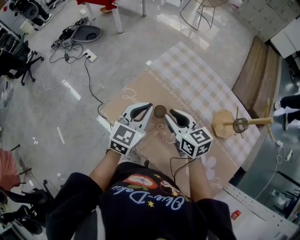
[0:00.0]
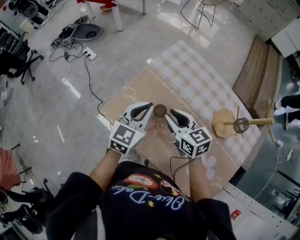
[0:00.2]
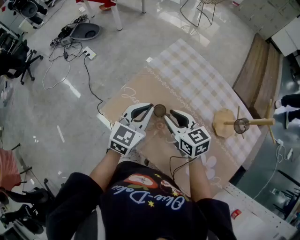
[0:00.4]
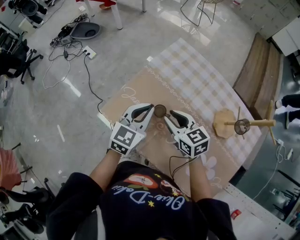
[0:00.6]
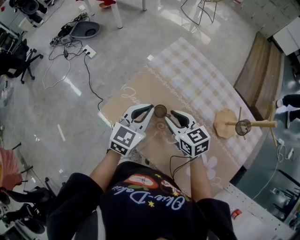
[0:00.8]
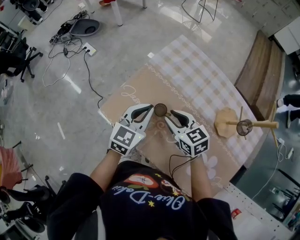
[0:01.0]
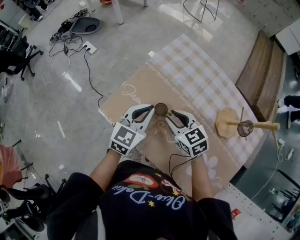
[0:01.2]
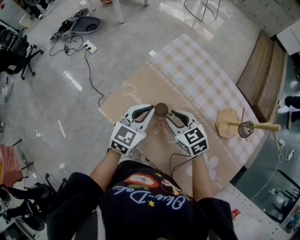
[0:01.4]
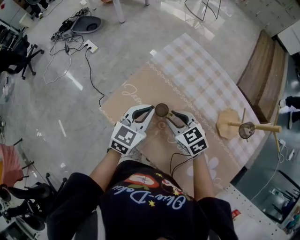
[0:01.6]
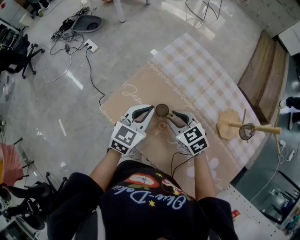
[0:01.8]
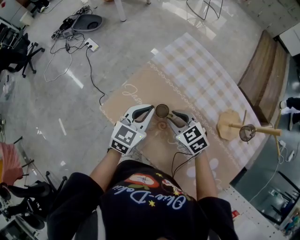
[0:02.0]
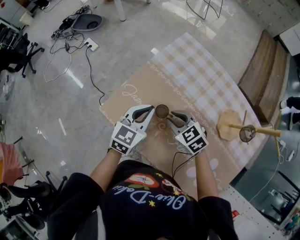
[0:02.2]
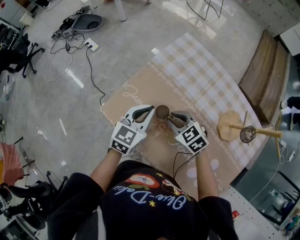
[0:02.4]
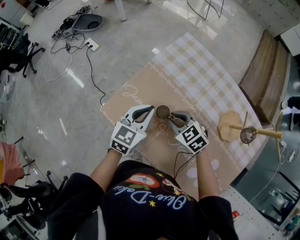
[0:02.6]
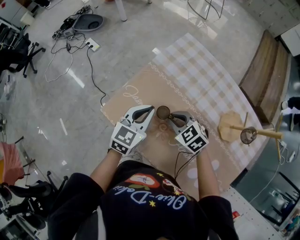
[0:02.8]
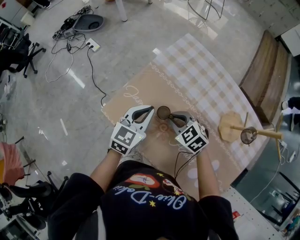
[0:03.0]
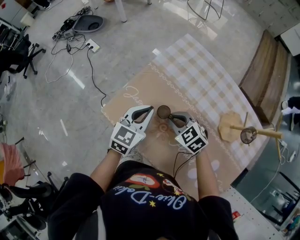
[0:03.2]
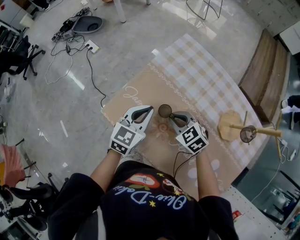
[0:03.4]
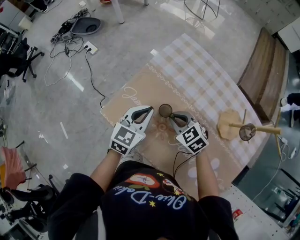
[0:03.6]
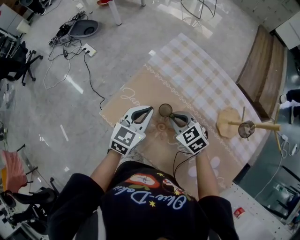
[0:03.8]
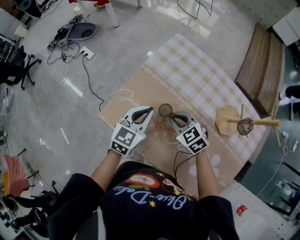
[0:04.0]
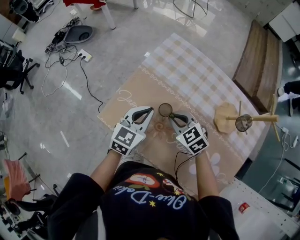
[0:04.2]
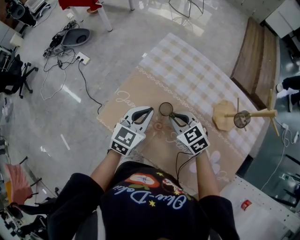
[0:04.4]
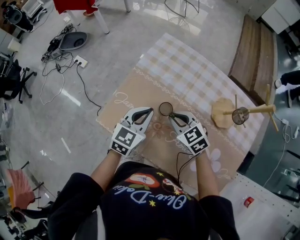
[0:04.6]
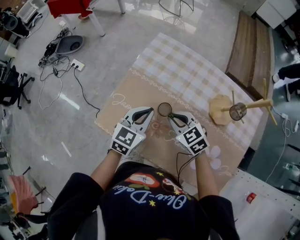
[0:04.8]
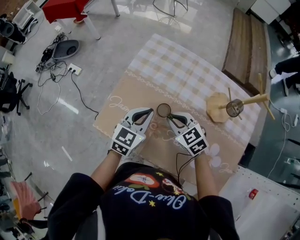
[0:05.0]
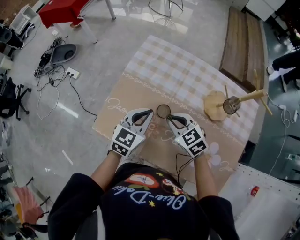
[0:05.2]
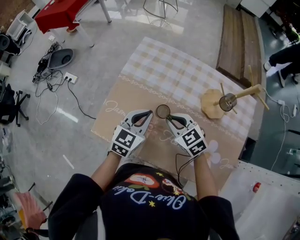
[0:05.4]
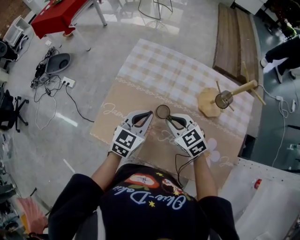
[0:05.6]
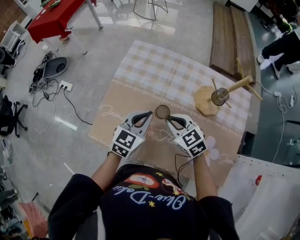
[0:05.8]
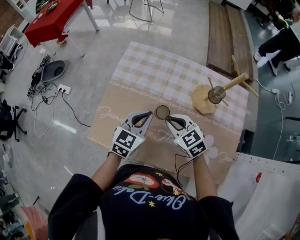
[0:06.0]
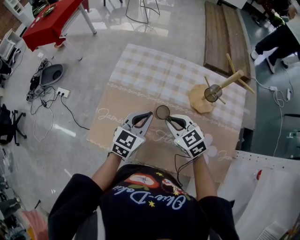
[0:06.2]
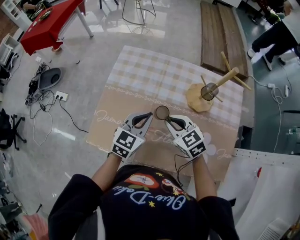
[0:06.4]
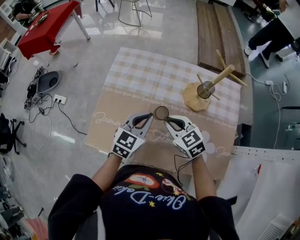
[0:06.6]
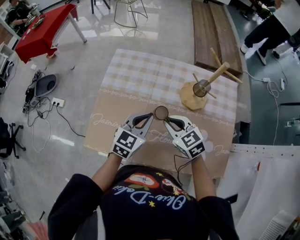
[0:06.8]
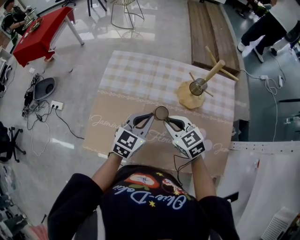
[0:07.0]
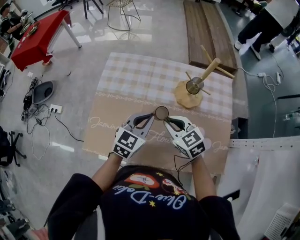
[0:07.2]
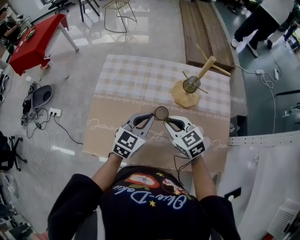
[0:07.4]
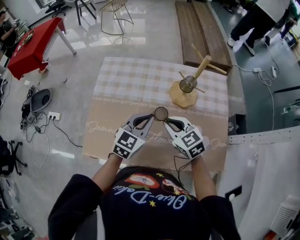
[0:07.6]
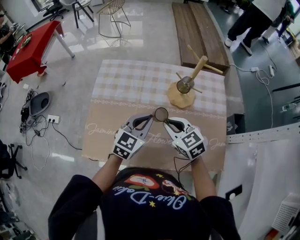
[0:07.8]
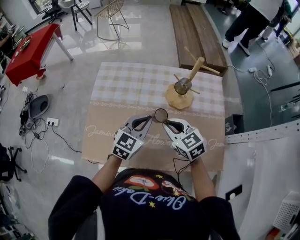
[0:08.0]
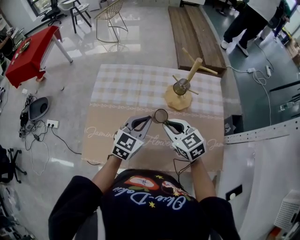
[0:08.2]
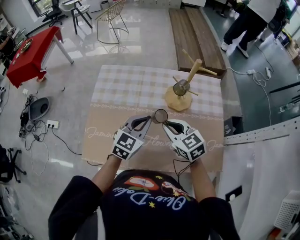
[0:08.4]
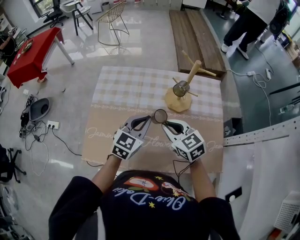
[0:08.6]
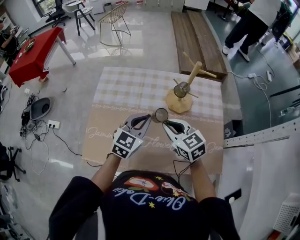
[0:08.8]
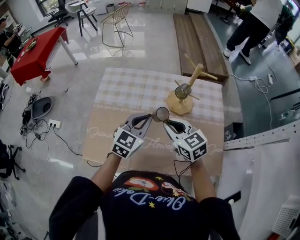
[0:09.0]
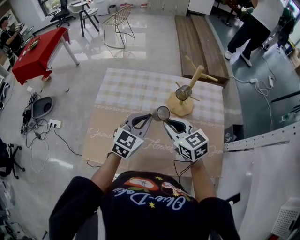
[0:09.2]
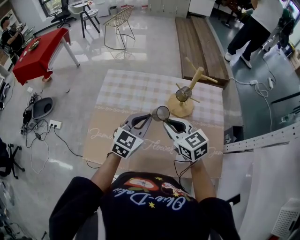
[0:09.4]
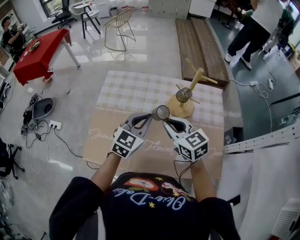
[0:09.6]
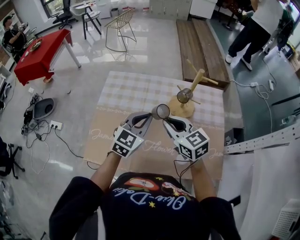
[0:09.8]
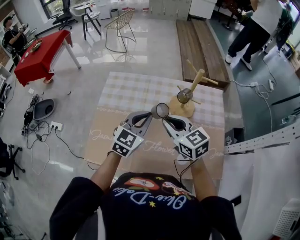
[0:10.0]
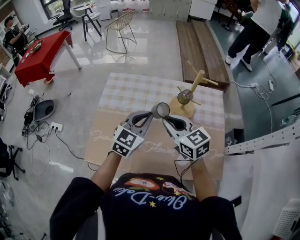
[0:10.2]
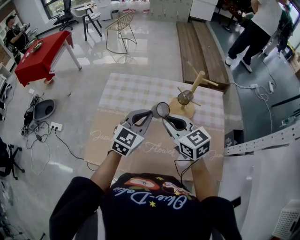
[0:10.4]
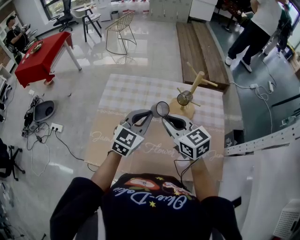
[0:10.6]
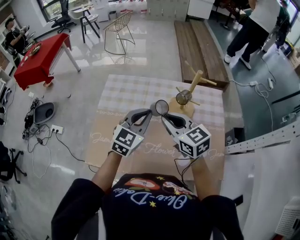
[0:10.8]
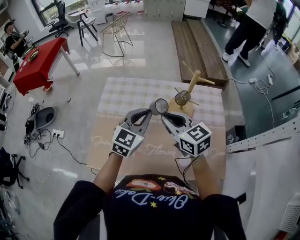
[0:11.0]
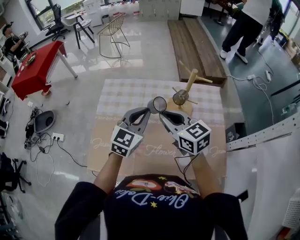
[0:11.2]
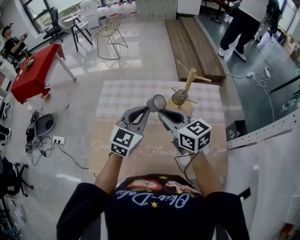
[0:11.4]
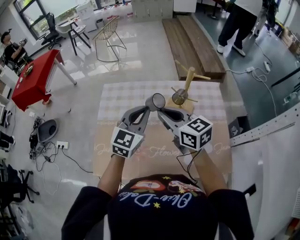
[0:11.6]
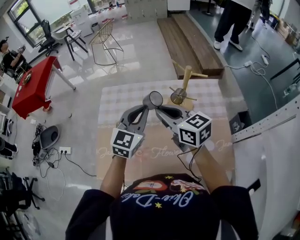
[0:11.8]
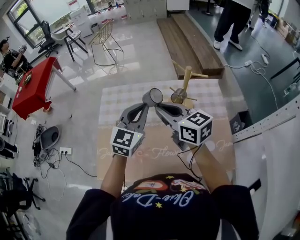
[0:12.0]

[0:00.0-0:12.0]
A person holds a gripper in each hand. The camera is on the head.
0:00.0 to 0:01.6: The two grippers go roughly 5 cm downward. The right gripper turns by approximately 30 degrees.
0:01.6 to 0:04.4: The grippers move only a little.
0:04.4 to 0:06.0: Both grippers travel together to the right, some 5 cm.
0:06.0 to 0:07.6: Both grippers move to the right, roughly 5 cm.
0:07.6 to 0:09.0: The right gripper goes approximately 5 cm upward.
0:09.0 to 0:10.4: The right gripper moves upward, roughly 5 cm.
0:10.4 to 0:12.0: The left gripper changes place by some 5 cm, while the right gripper moves roughly 5 cm.

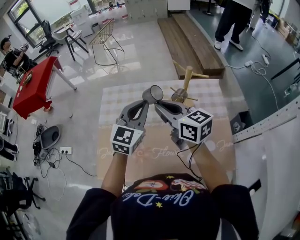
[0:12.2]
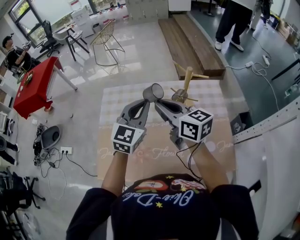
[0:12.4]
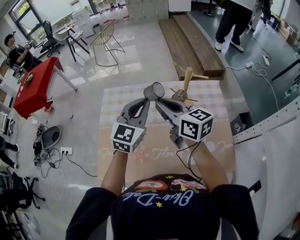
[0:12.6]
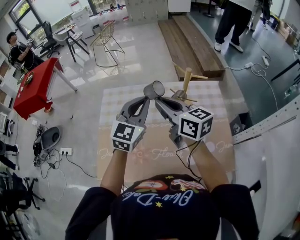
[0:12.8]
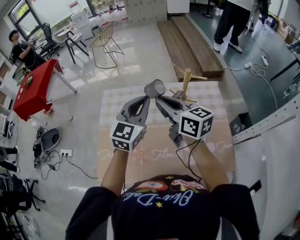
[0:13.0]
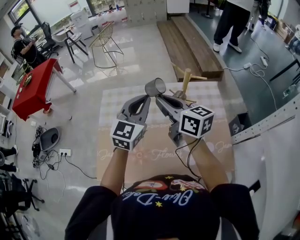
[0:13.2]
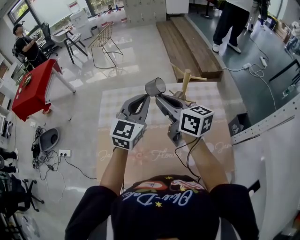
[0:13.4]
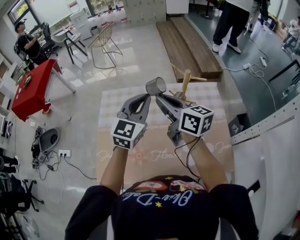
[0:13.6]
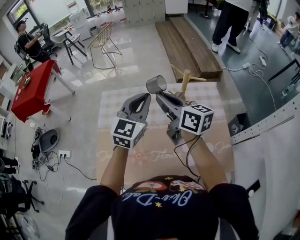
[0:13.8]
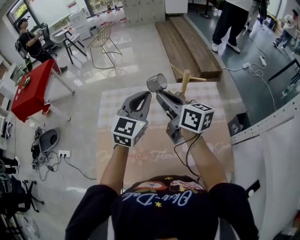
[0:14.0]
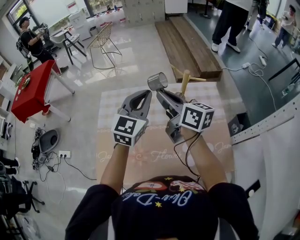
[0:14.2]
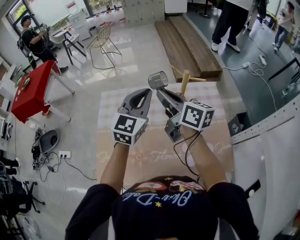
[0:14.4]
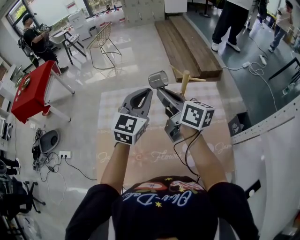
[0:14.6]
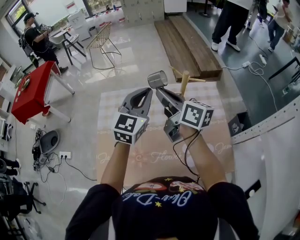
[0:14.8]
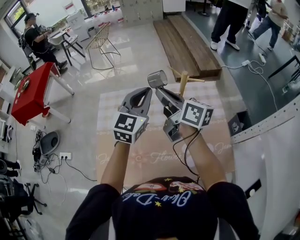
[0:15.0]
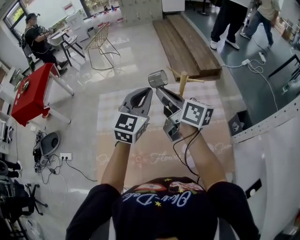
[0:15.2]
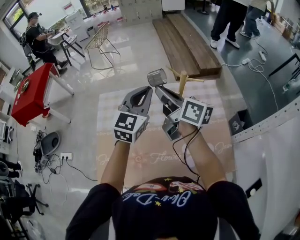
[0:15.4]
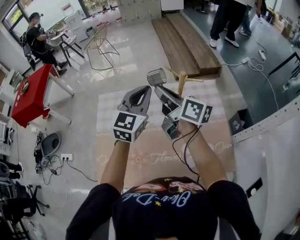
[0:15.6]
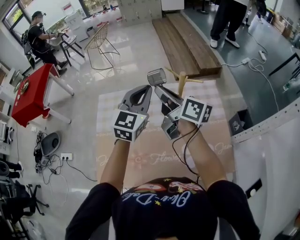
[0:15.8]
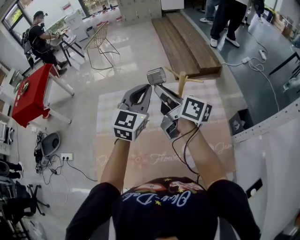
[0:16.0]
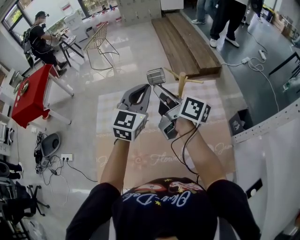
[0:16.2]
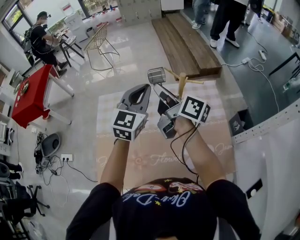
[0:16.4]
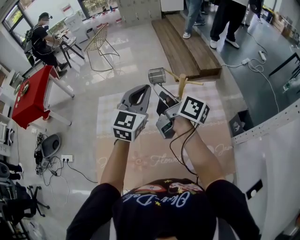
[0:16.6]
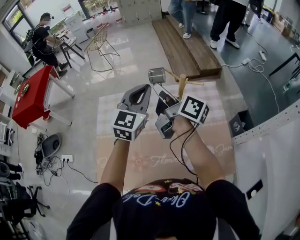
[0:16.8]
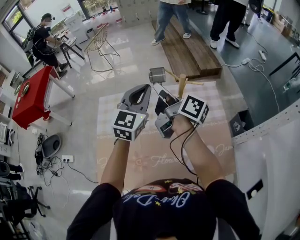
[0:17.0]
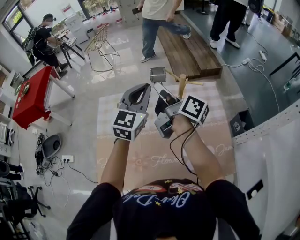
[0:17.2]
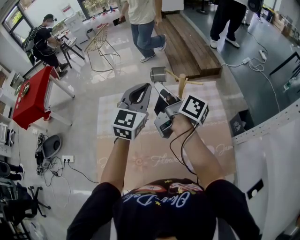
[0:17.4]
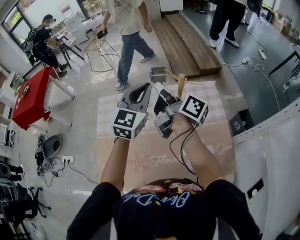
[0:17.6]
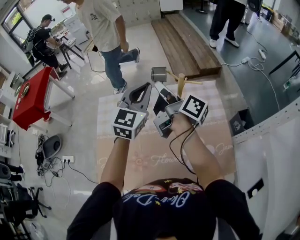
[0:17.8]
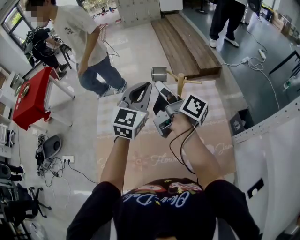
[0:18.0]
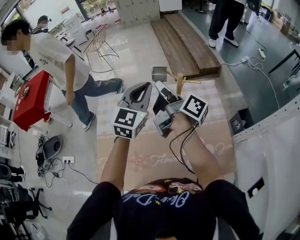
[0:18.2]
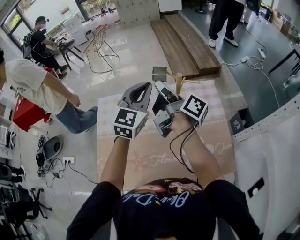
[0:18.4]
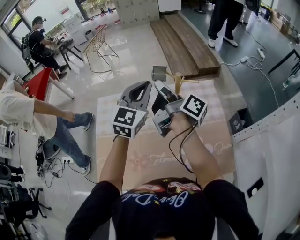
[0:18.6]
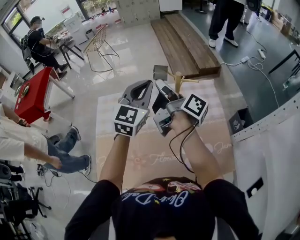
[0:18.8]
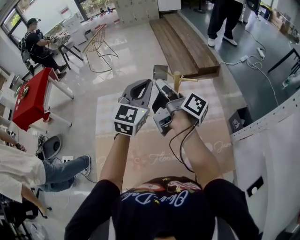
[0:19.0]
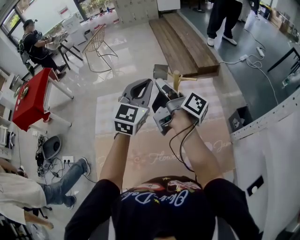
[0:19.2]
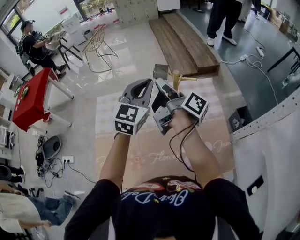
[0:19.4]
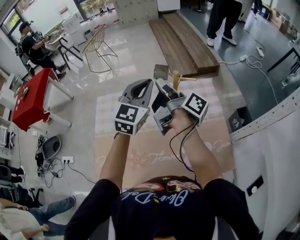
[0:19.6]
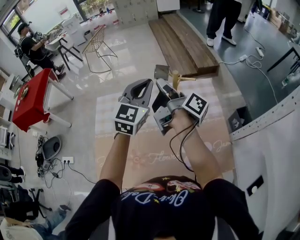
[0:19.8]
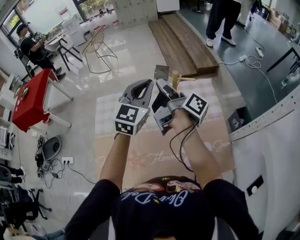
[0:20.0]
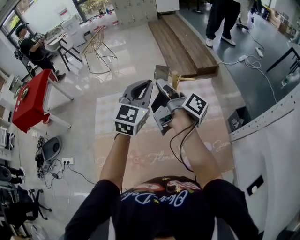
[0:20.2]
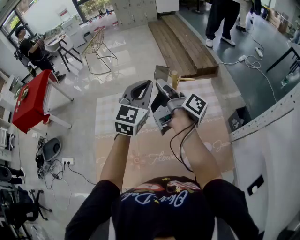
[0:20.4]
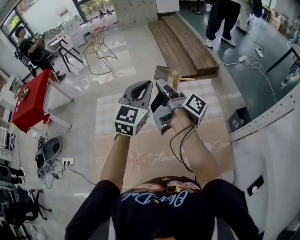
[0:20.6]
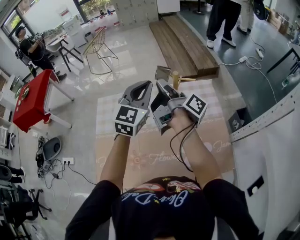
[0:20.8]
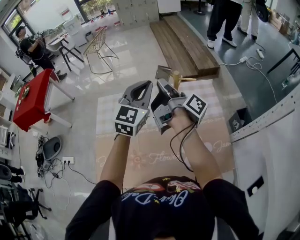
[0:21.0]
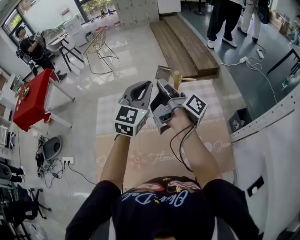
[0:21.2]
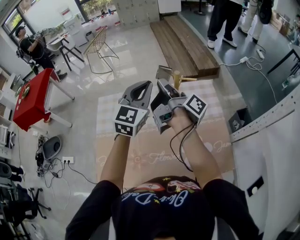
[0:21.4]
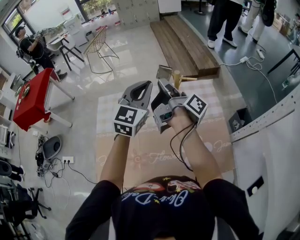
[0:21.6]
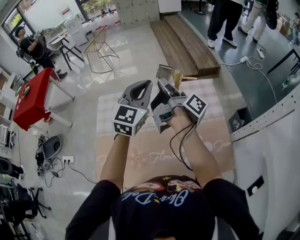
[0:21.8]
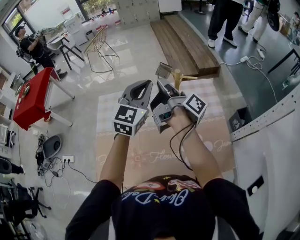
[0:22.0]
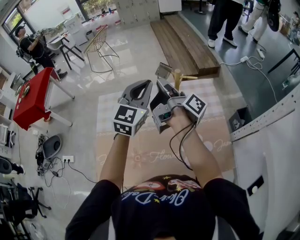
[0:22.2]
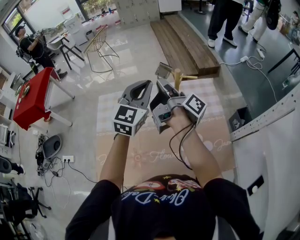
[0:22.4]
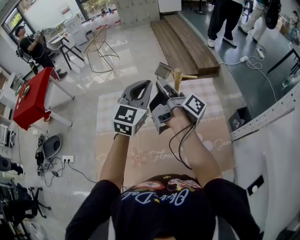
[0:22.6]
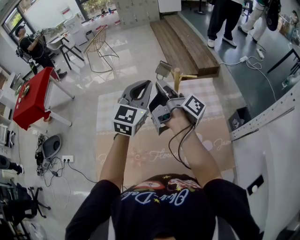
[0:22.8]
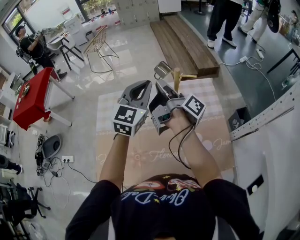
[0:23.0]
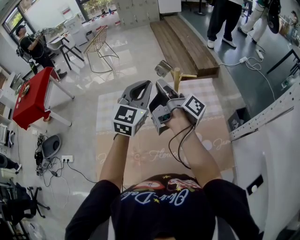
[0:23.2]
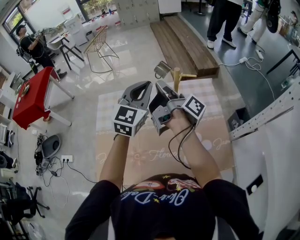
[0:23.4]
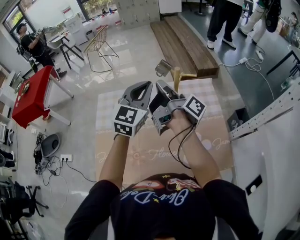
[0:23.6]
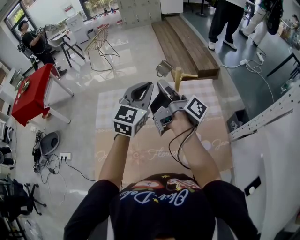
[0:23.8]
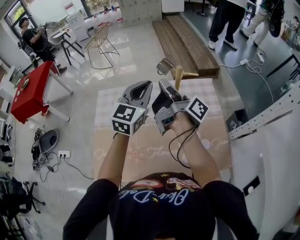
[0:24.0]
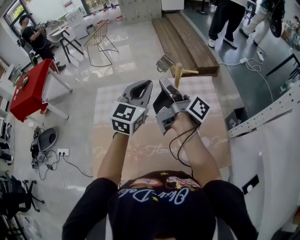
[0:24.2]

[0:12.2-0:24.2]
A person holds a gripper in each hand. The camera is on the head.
0:12.2 to 0:13.8: The grippers move only a little.
0:13.8 to 0:15.2: The grippers make only small movements.
0:15.2 to 0:16.6: The grippers make only small movements.
0:16.6 to 0:18.2: The grippers stay close to where they were, moving slightly.
0:18.2 to 0:21.2: The grippers move only a little.
0:21.2 to 0:22.6: Neither gripper changes place.
0:22.6 to 0:24.2: The grippers stay close to where they were, moving slightly.
